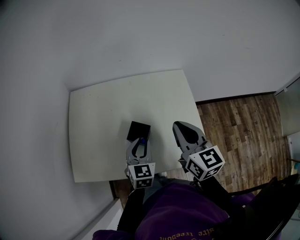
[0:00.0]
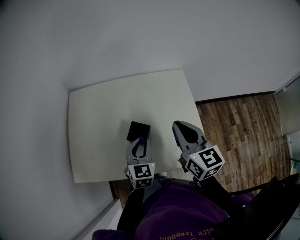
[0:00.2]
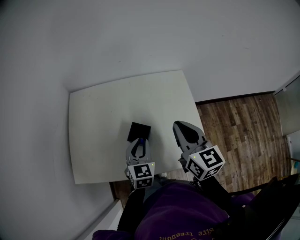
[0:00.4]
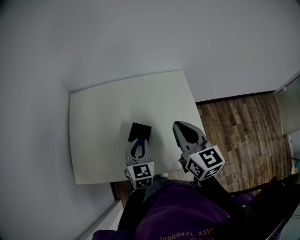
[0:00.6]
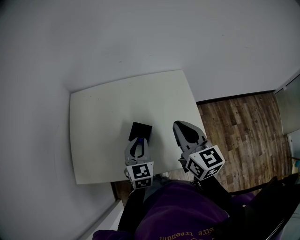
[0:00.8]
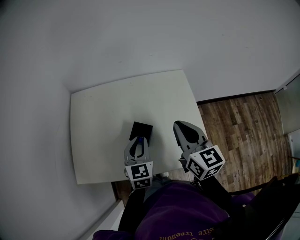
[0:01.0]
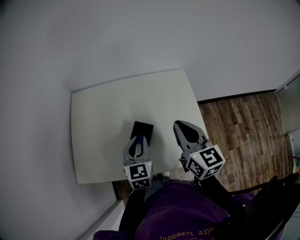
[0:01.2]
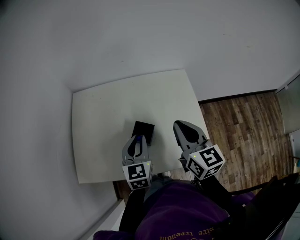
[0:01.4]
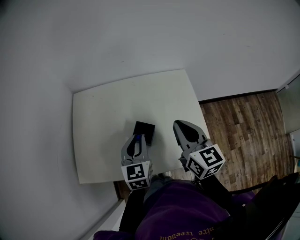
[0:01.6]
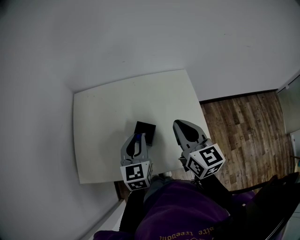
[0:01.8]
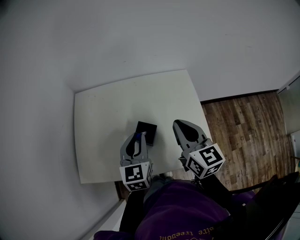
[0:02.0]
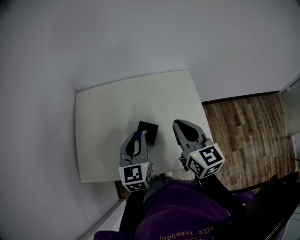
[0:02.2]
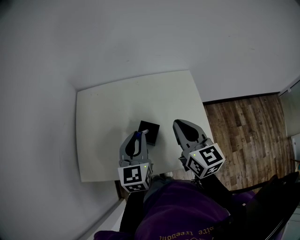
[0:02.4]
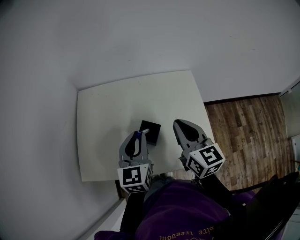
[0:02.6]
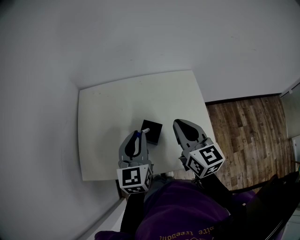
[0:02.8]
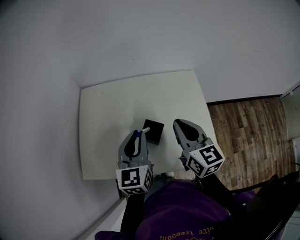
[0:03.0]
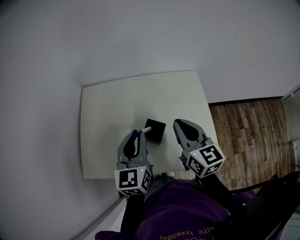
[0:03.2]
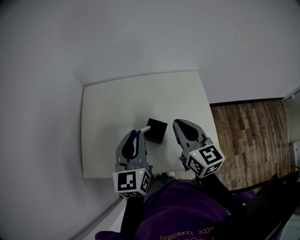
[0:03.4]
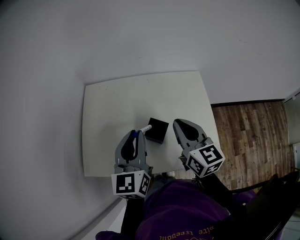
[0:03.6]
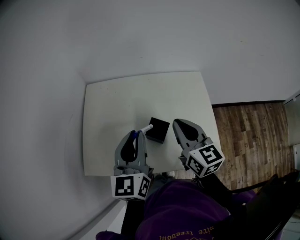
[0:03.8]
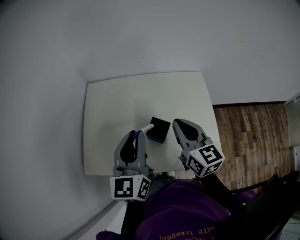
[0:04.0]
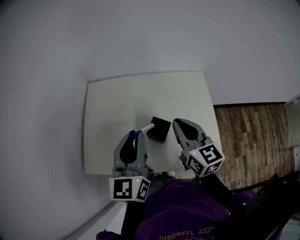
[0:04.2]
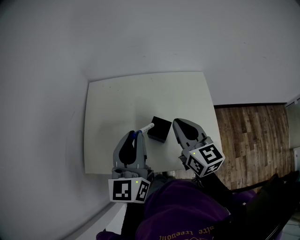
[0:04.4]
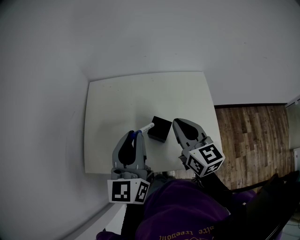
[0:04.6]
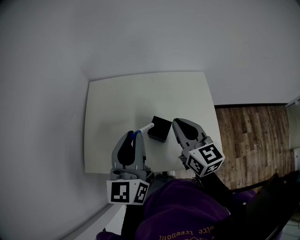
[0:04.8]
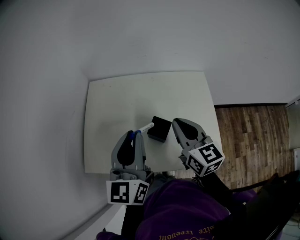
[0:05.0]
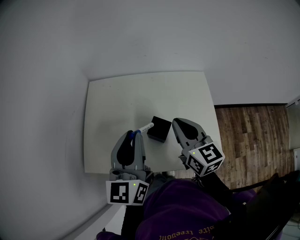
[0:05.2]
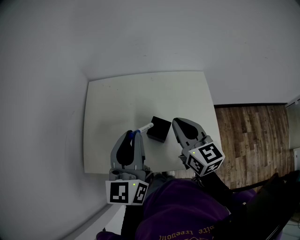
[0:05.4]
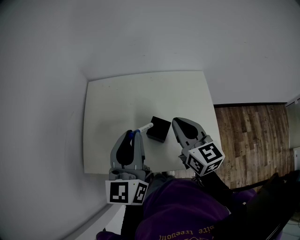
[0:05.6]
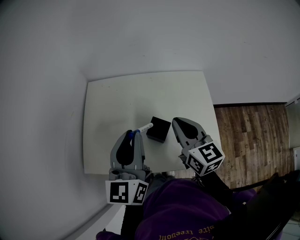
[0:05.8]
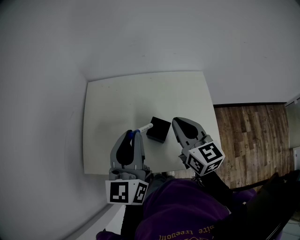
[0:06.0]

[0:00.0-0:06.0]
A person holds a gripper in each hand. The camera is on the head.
0:00.0 to 0:01.6: The left gripper is displaced upward by about 5 cm.
0:01.6 to 0:03.0: The left gripper heads upward, covering some 5 cm.
0:03.0 to 0:04.4: The left gripper shifts roughly 5 cm upward.
0:04.4 to 0:06.0: Neither gripper changes place.

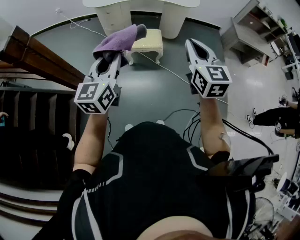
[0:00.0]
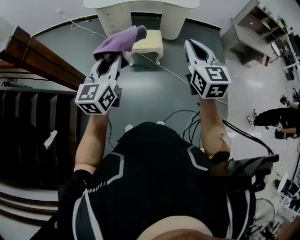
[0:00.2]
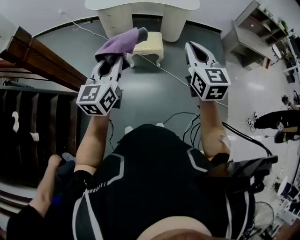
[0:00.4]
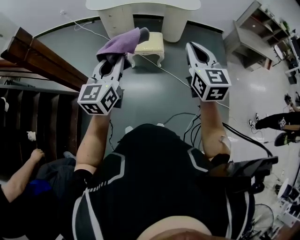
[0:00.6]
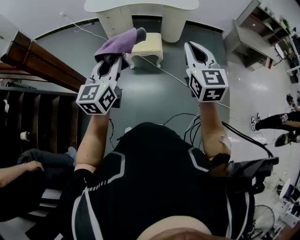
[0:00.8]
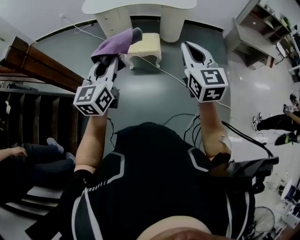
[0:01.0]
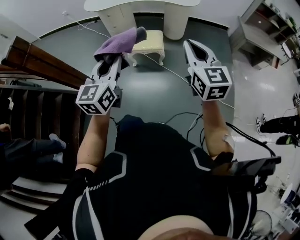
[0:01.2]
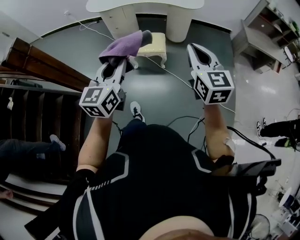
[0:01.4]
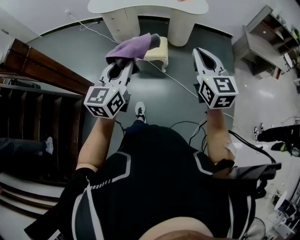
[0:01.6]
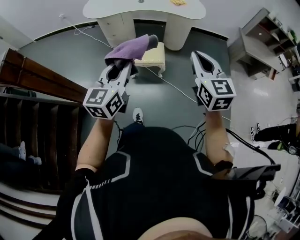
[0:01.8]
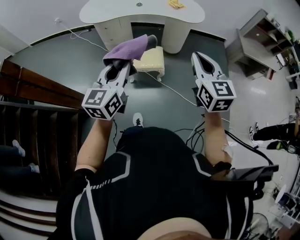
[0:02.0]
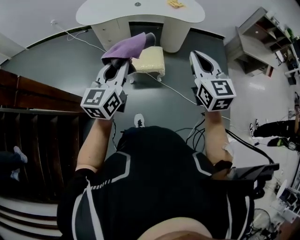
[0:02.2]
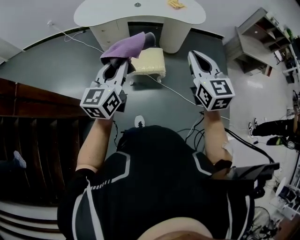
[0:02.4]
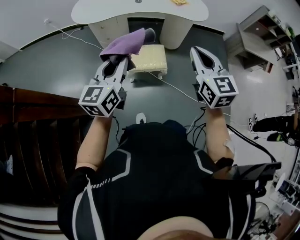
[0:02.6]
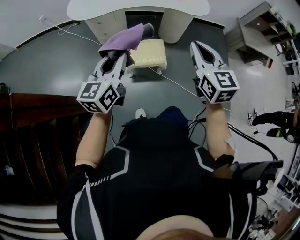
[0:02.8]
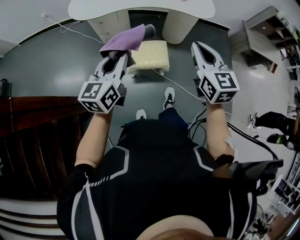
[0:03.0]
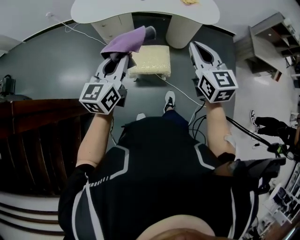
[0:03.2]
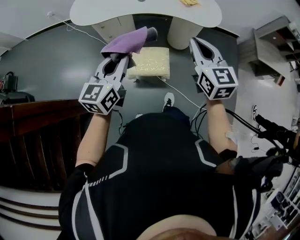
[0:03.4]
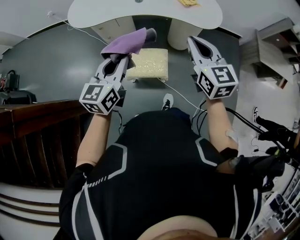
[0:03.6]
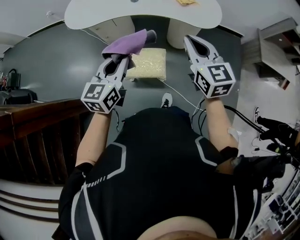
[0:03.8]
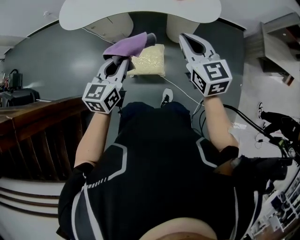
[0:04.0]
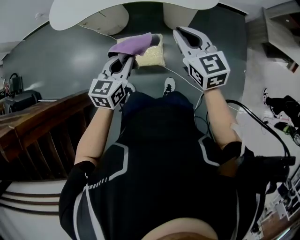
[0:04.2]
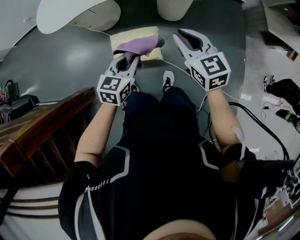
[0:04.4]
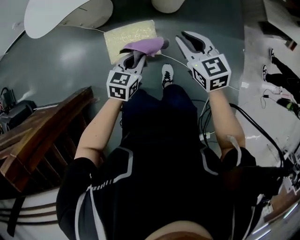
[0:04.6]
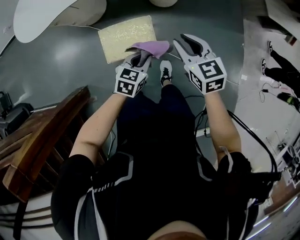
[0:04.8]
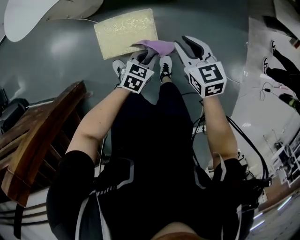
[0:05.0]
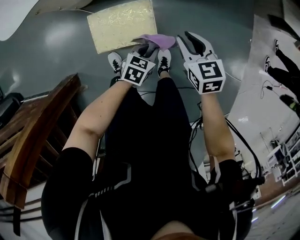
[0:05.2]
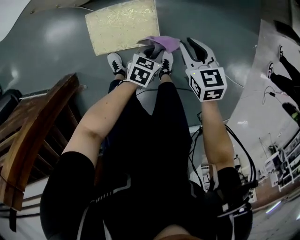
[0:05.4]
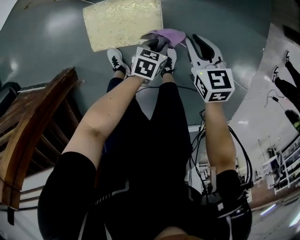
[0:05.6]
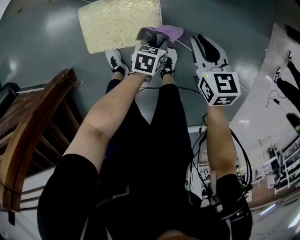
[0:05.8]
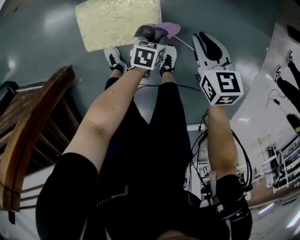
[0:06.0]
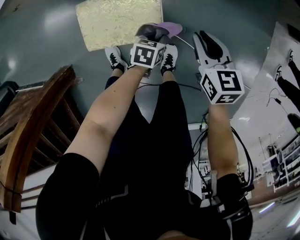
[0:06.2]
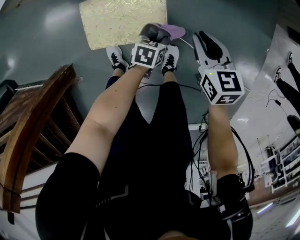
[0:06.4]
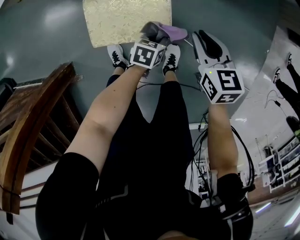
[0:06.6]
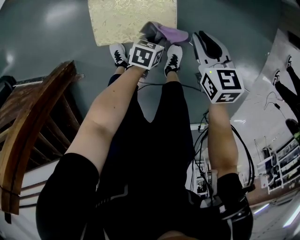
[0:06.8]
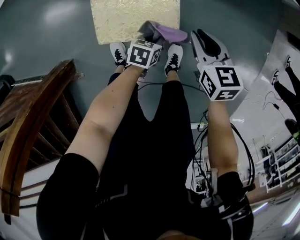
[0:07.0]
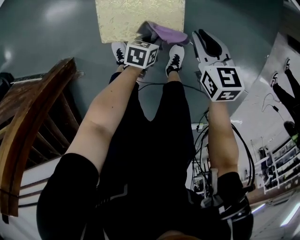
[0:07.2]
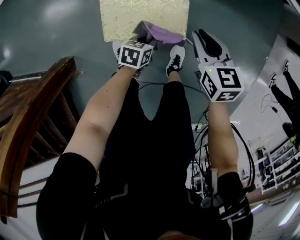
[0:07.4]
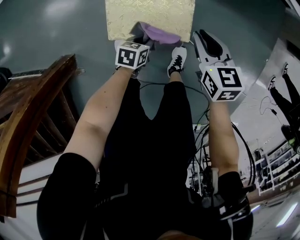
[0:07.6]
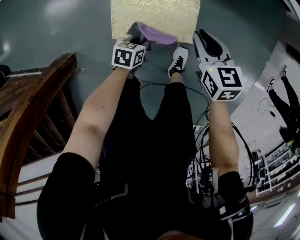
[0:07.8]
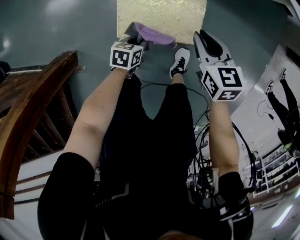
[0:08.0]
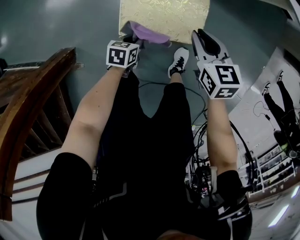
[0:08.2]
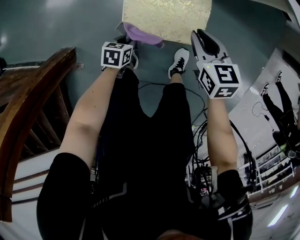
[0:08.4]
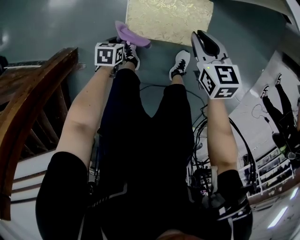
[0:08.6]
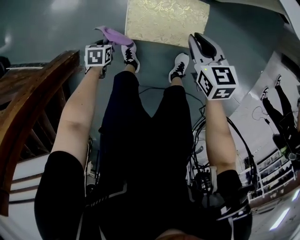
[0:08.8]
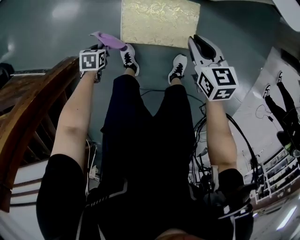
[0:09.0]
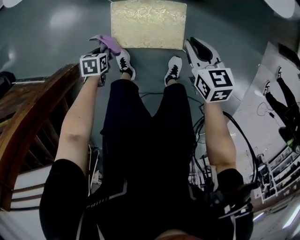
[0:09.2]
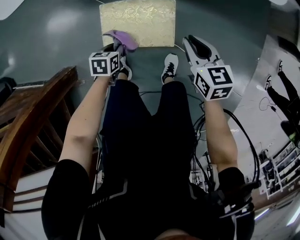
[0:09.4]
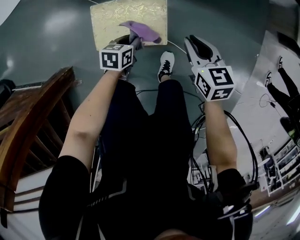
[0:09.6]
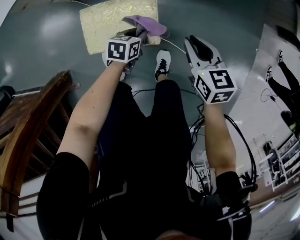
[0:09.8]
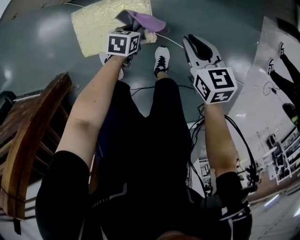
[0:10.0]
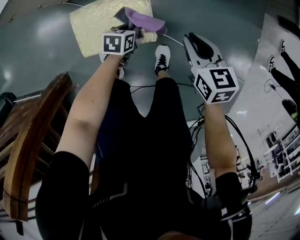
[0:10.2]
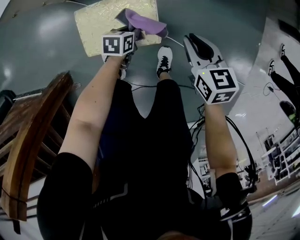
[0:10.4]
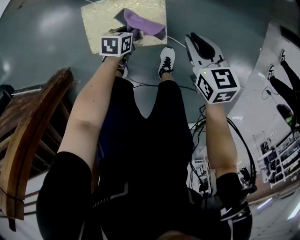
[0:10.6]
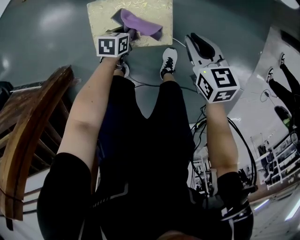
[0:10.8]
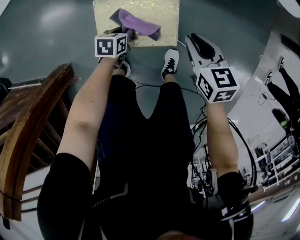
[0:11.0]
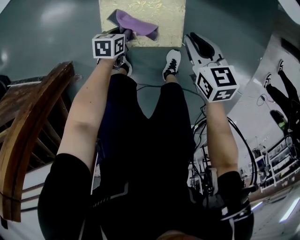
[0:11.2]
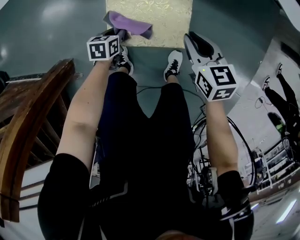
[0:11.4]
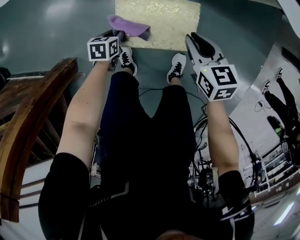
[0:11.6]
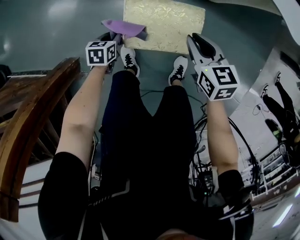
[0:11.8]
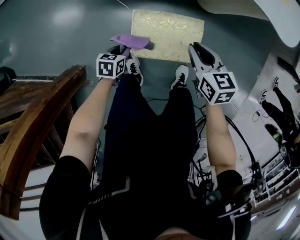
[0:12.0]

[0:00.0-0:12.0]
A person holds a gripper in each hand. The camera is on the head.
0:00.0 to 0:01.6: The grippers both shift to the right and forward by some 10 cm.
0:01.6 to 0:03.0: Both grippers travel together forward and to the left, some 30 cm.
0:03.0 to 0:04.4: The right gripper heads forward, downward and to the right, covering roughly 25 cm; the left gripper is displaced to the right, downward and forward by roughly 30 cm, and swivels approximately 30 degrees.
0:04.4 to 0:06.0: Both grippers move downward, about 40 cm. The right gripper changes its angle by roughly 20 degrees. Meanwhile the left gripper rotates approximately 30 degrees.
0:06.0 to 0:07.6: The left gripper goes approximately 15 cm to the left and backward, while the right gripper travels to the left by approximately 15 cm.
0:07.6 to 0:09.0: The left gripper shifts by roughly 25 cm, and turns by some 20 degrees; the right gripper changes place by approximately 5 cm.
0:09.0 to 0:10.4: The right gripper changes place by roughly 15 cm, while the left gripper moves approximately 35 cm, and swivels roughly 20 degrees.
0:10.4 to 0:12.0: The two grippers go approximately 25 cm to the left.

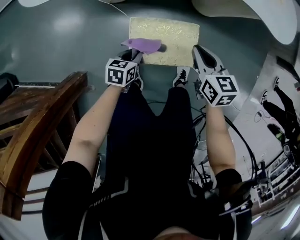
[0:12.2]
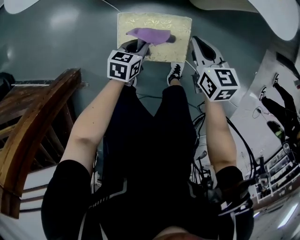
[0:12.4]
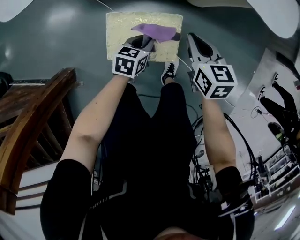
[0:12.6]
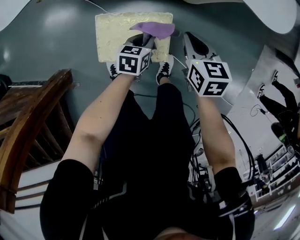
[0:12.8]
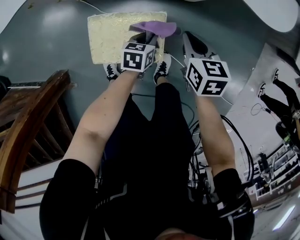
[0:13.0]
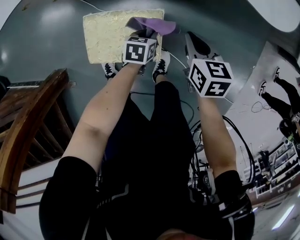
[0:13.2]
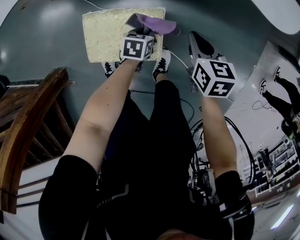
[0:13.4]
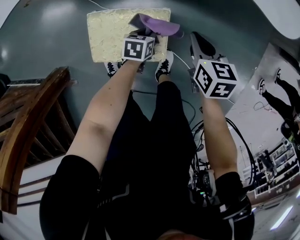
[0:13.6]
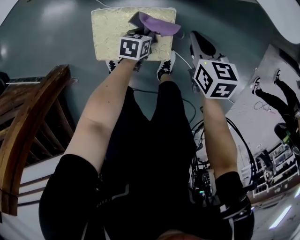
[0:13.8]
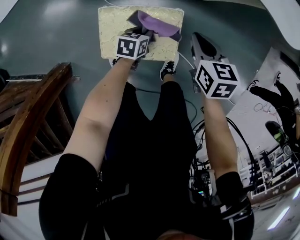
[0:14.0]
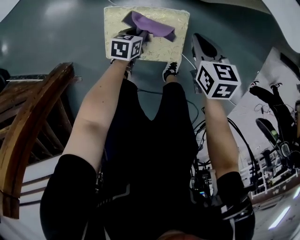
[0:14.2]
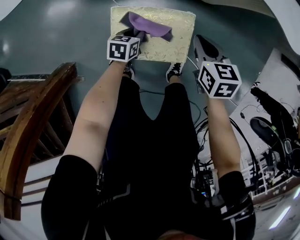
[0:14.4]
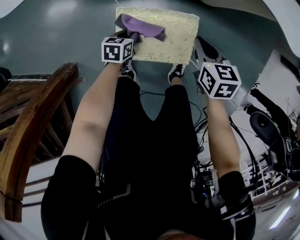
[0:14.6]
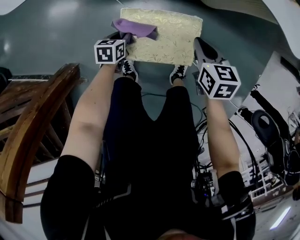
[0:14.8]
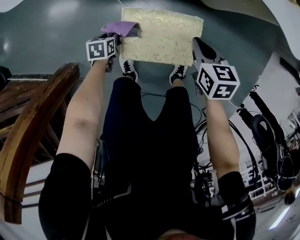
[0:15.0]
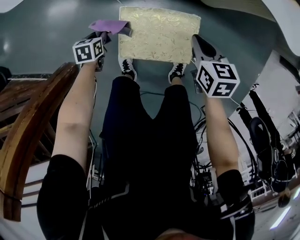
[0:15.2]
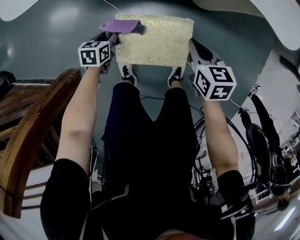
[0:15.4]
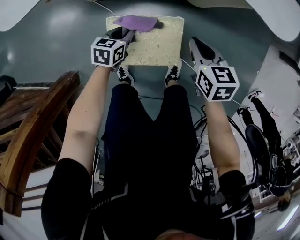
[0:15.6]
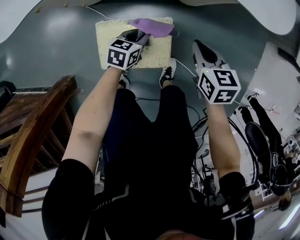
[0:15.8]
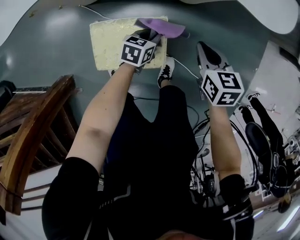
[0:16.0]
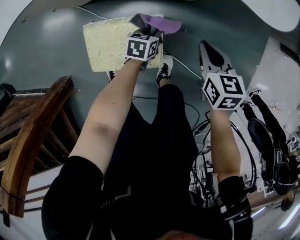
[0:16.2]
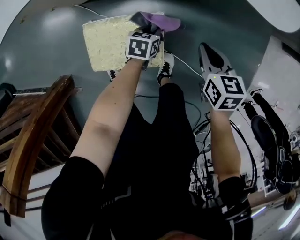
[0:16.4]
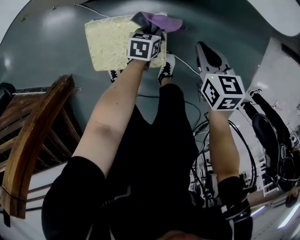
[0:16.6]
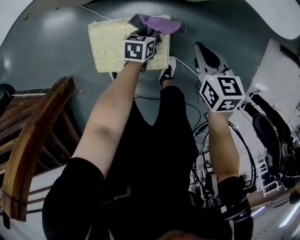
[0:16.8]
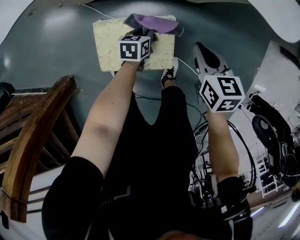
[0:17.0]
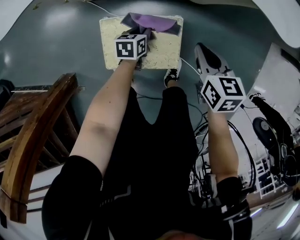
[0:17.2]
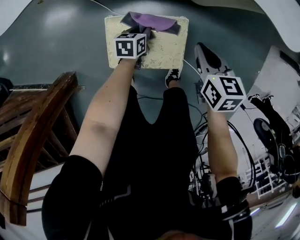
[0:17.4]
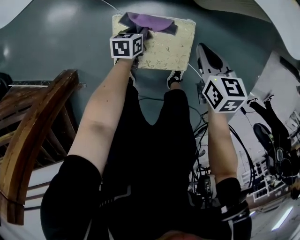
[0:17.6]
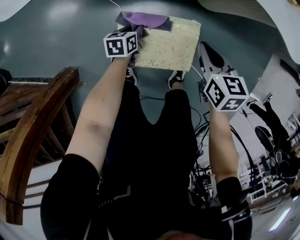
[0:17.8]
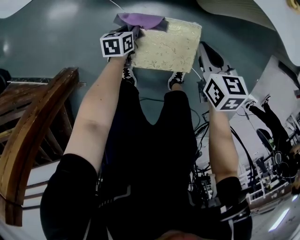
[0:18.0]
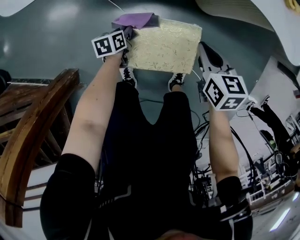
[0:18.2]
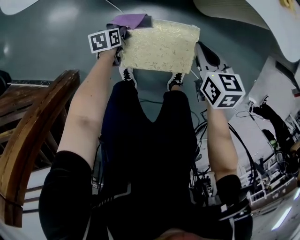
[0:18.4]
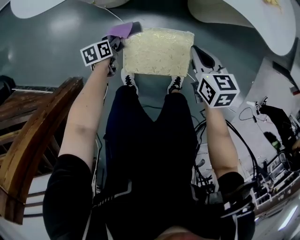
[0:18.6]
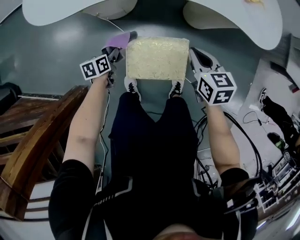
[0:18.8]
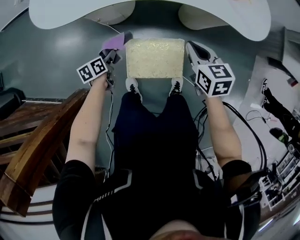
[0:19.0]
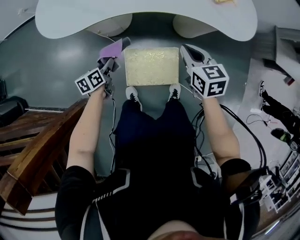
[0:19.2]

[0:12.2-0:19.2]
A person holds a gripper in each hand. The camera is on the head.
0:12.2 to 0:13.6: The right gripper travels to the right, downward and forward by about 20 cm, while the left gripper moves to the right, forward and downward, roughly 25 cm.
0:13.6 to 0:15.0: The left gripper shifts approximately 30 cm to the left; the right gripper moves to the left, approximately 15 cm.
0:15.0 to 0:16.4: The left gripper shifts some 35 cm to the right, and swivels about 20 degrees. Meanwhile the right gripper shifts about 20 cm to the right.
0:16.4 to 0:17.8: Both grippers travel together to the left, about 20 cm.
0:17.8 to 0:19.2: The left gripper travels upward and to the left by roughly 25 cm. Meanwhile the right gripper is displaced upward by approximately 20 cm.
